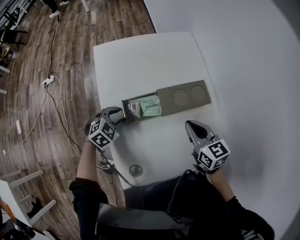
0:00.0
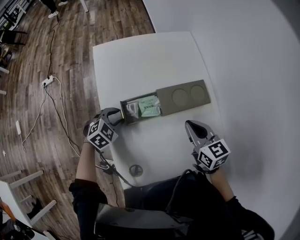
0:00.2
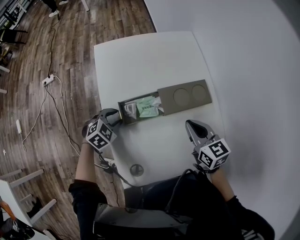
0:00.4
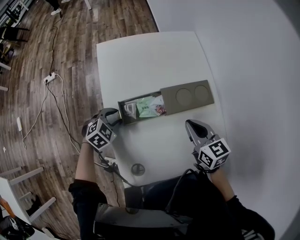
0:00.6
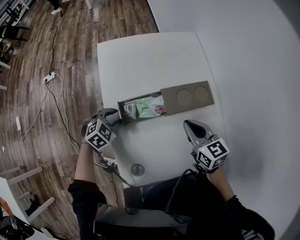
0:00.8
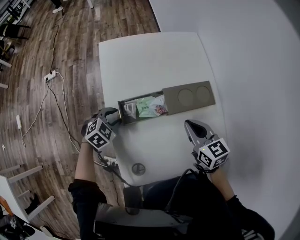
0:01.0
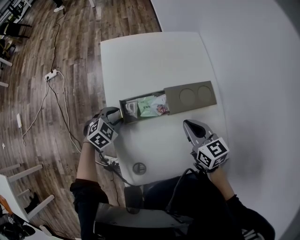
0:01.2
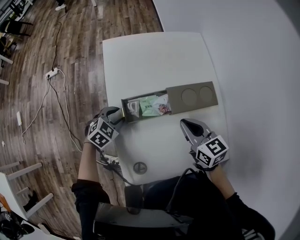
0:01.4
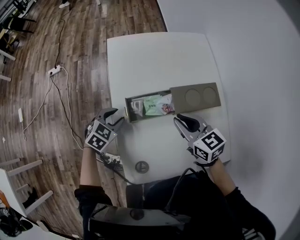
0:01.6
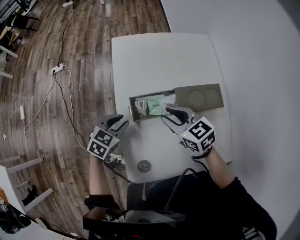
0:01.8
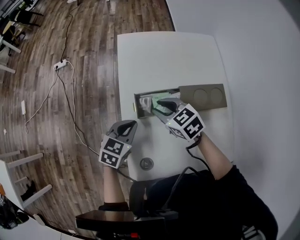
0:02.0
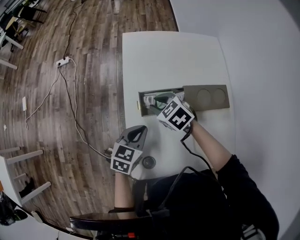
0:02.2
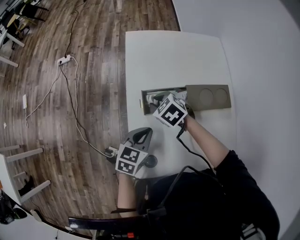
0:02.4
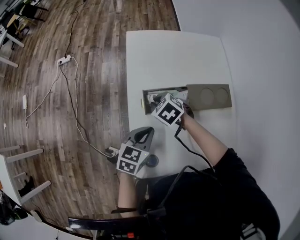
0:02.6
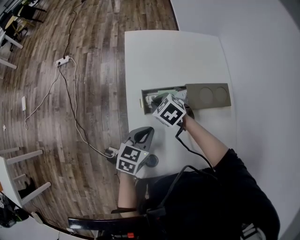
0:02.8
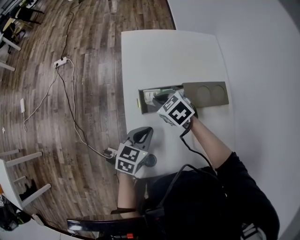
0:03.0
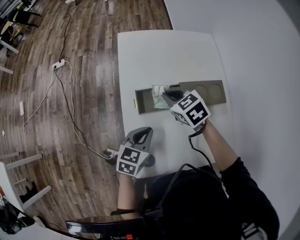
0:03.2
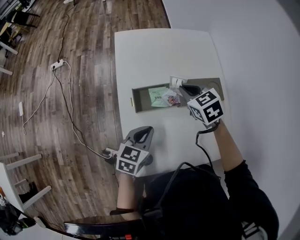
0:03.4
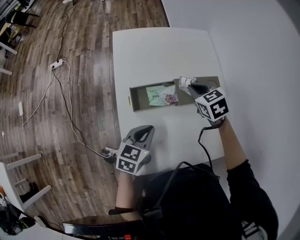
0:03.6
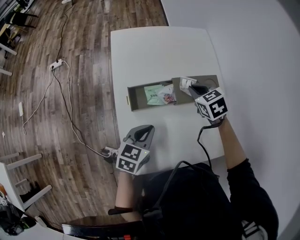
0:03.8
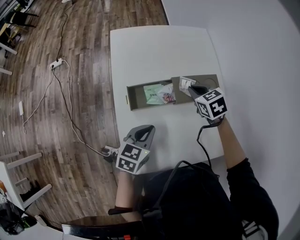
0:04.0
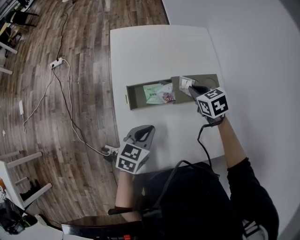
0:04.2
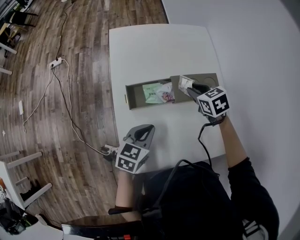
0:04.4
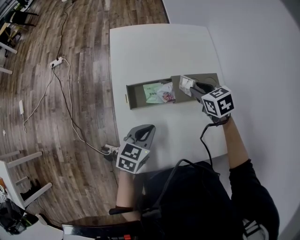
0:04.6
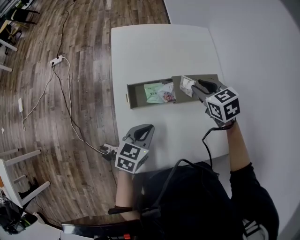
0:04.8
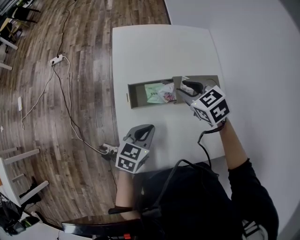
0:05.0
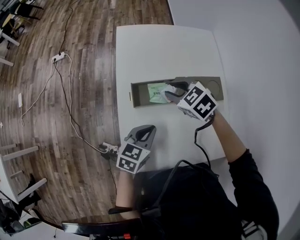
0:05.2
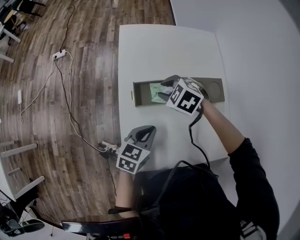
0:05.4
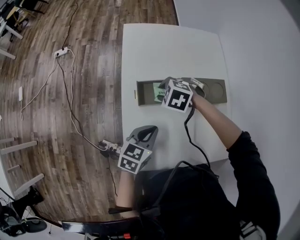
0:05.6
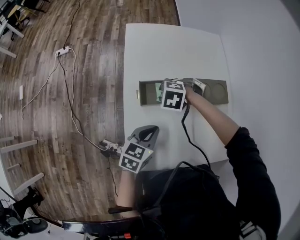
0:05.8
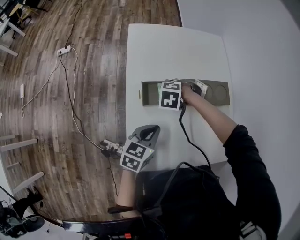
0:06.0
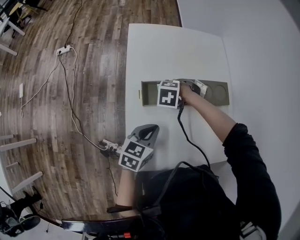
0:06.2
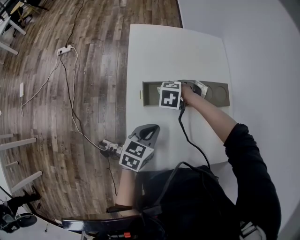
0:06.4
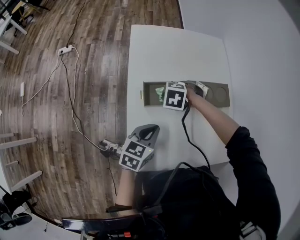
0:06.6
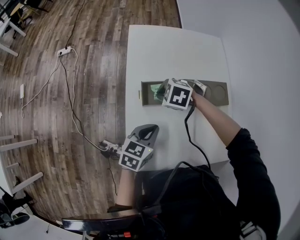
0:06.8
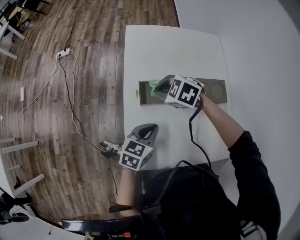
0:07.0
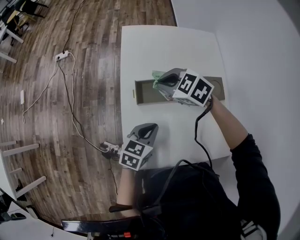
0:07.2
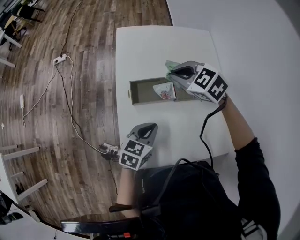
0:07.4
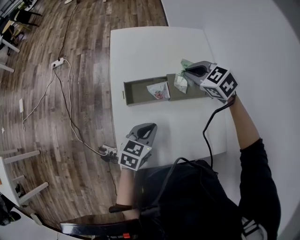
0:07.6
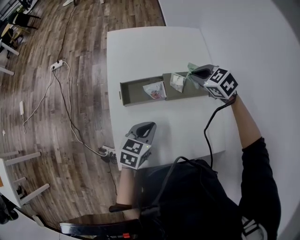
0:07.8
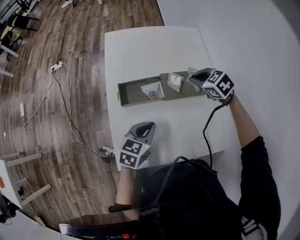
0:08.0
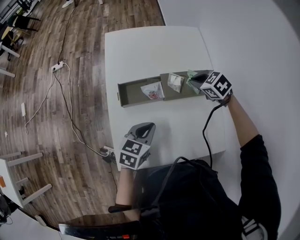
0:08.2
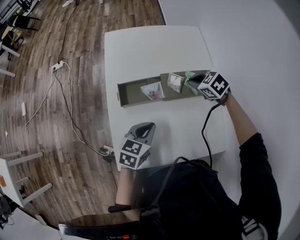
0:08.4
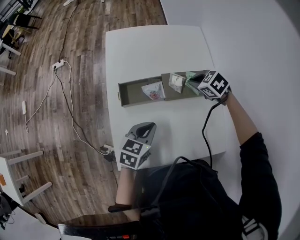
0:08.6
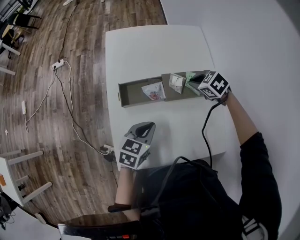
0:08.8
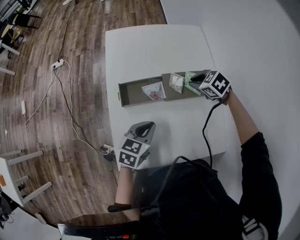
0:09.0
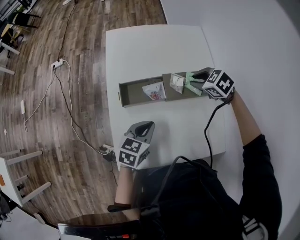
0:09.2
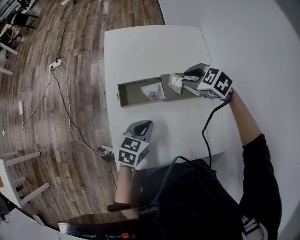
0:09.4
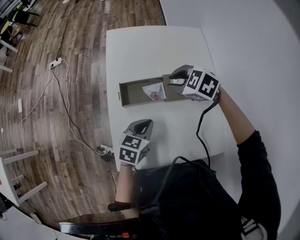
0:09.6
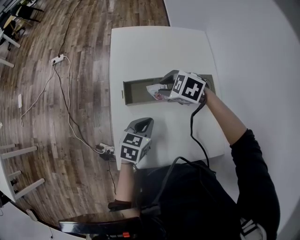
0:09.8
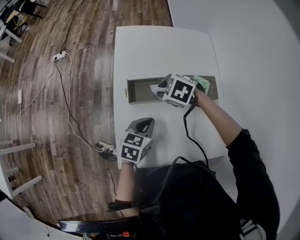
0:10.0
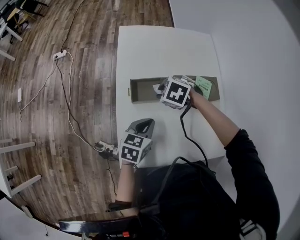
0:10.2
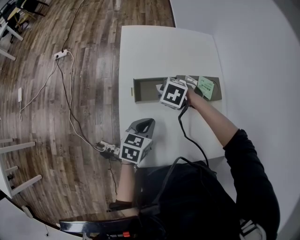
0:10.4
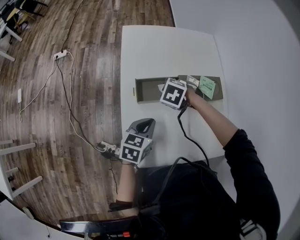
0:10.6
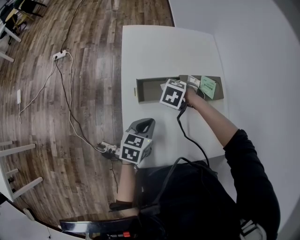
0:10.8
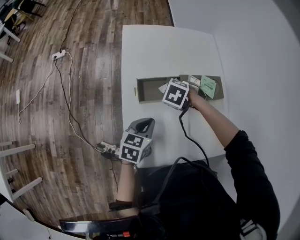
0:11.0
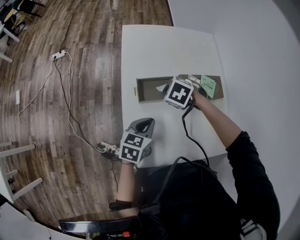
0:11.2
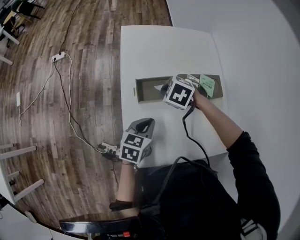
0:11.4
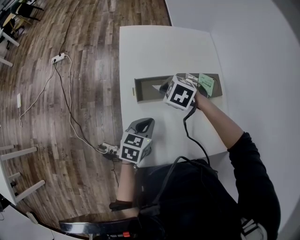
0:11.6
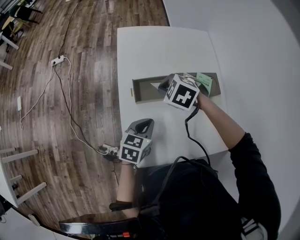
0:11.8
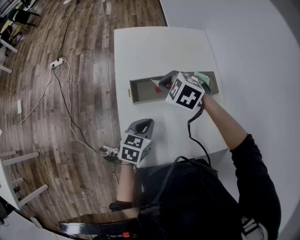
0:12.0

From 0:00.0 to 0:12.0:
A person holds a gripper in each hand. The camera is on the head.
From 0:00.0 to 0:01.6: Both grippers move to the left, about 10 cm.
From 0:01.6 to 0:03.0: The right gripper moves to the left, downward and forward, approximately 15 cm, and turns by roughly 30 degrees; the left gripper moves backward and to the right, roughly 10 cm, changes its angle by some 30 degrees, and closes its fingers.
From 0:03.0 to 0:04.4: The right gripper is displaced to the right by about 20 cm, swivels approximately 20 degrees, and opens its fingers; the left gripper shifts approximately 5 cm to the right.
From 0:04.4 to 0:06.0: The right gripper shifts by some 20 cm, and rotates around the line of its fingers by roughly 50 degrees, counterclockwise from behind.
From 0:06.0 to 0:07.6: The right gripper heads upward, covering about 15 cm, tips its fingers upward by approximately 30 degrees, and closes. Meanwhile the left gripper shifts by roughly 5 cm.
From 0:07.6 to 0:09.0: The right gripper is displaced downward and to the right by some 15 cm.
From 0:09.0 to 0:10.4: The left gripper changes place by approximately 5 cm, while the right gripper reaches roughly 5 cm upward, then returns, and turns by approximately 20 degrees.
From 0:10.4 to 0:12.0: The right gripper shifts about 10 cm upward, and closes up.

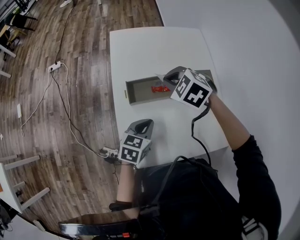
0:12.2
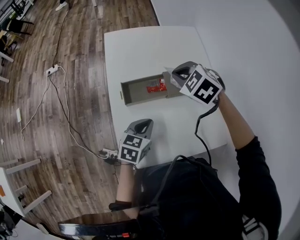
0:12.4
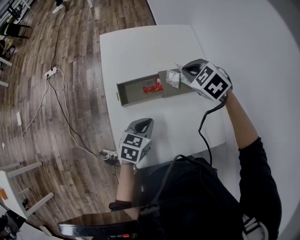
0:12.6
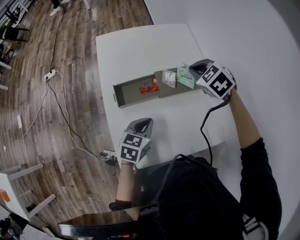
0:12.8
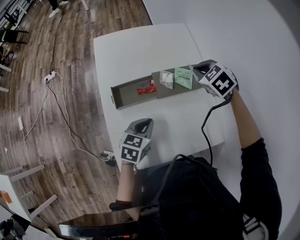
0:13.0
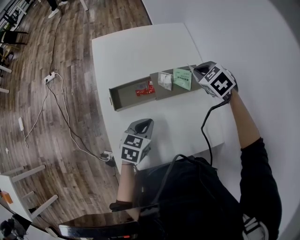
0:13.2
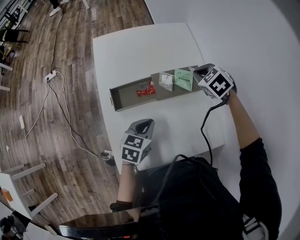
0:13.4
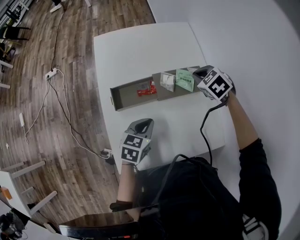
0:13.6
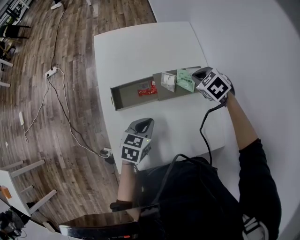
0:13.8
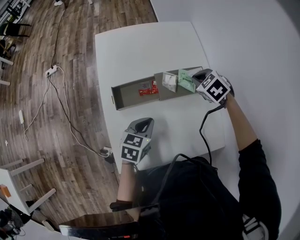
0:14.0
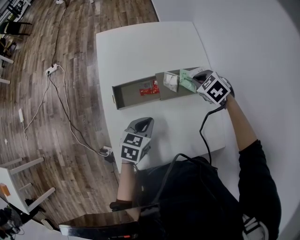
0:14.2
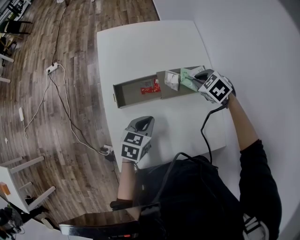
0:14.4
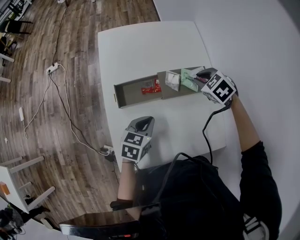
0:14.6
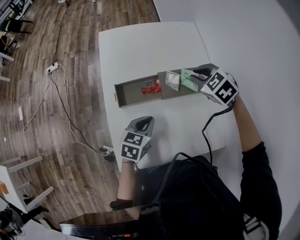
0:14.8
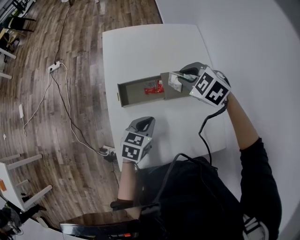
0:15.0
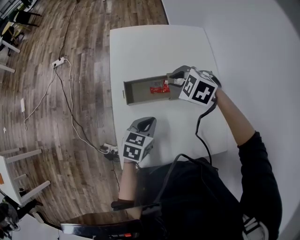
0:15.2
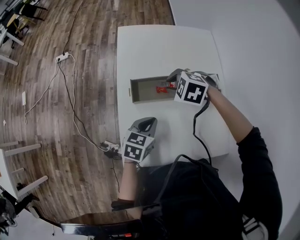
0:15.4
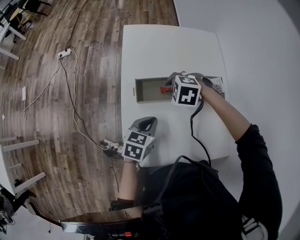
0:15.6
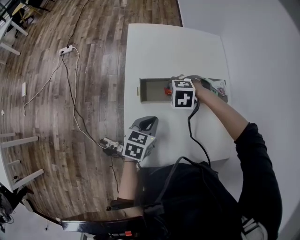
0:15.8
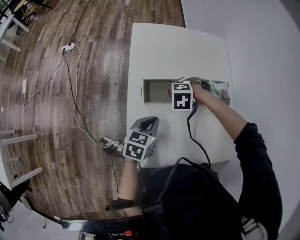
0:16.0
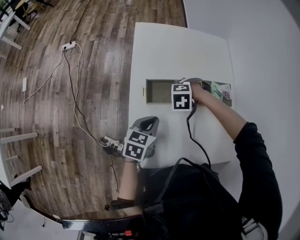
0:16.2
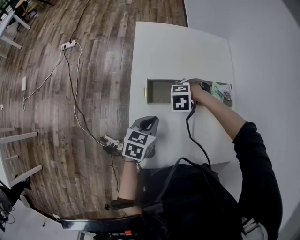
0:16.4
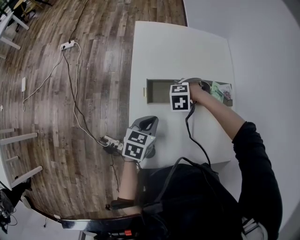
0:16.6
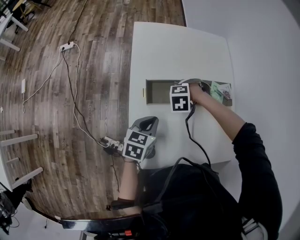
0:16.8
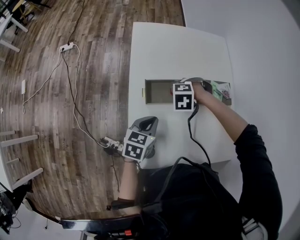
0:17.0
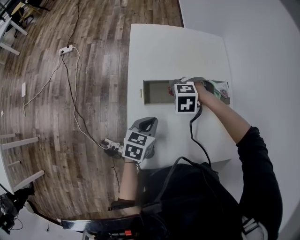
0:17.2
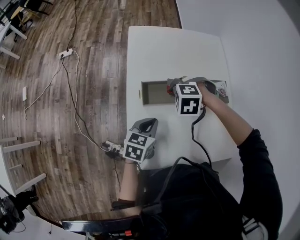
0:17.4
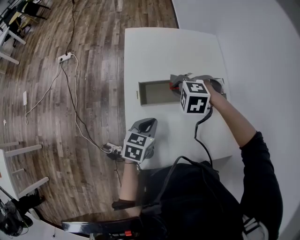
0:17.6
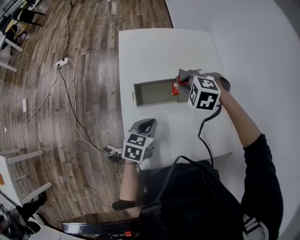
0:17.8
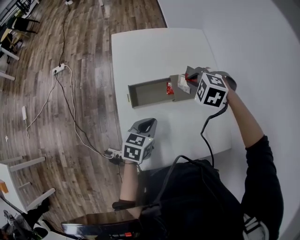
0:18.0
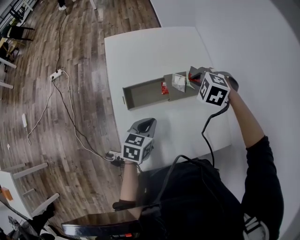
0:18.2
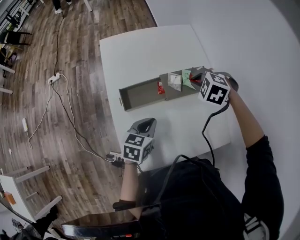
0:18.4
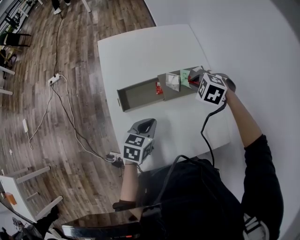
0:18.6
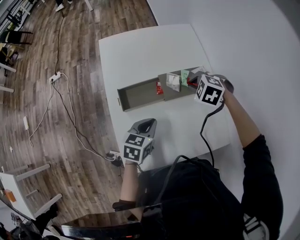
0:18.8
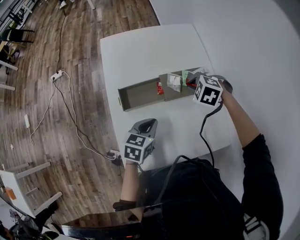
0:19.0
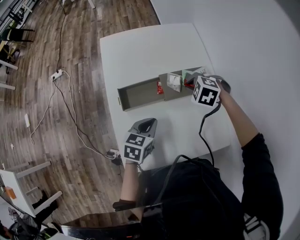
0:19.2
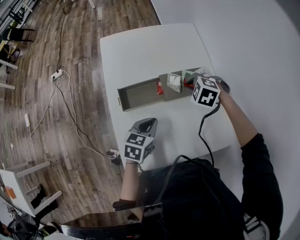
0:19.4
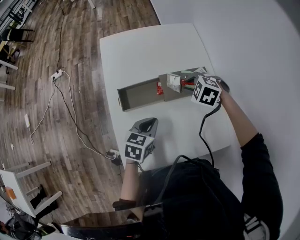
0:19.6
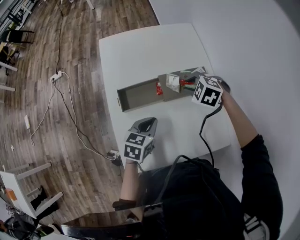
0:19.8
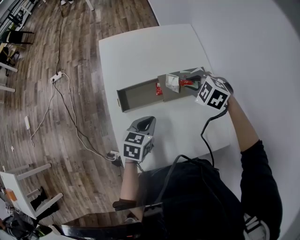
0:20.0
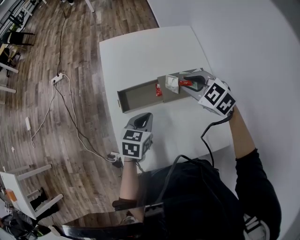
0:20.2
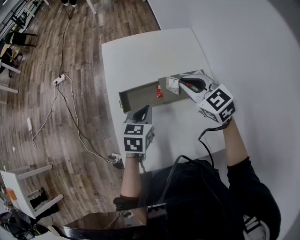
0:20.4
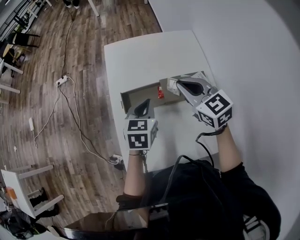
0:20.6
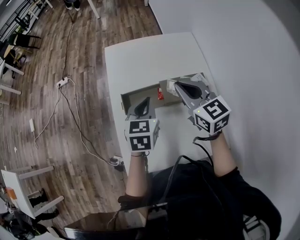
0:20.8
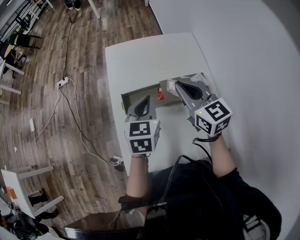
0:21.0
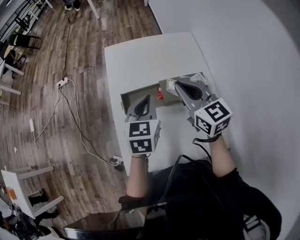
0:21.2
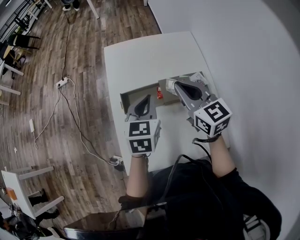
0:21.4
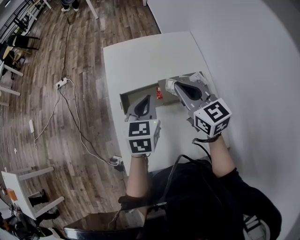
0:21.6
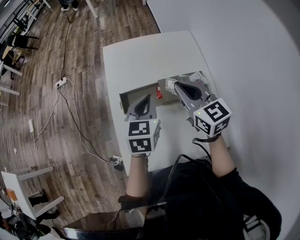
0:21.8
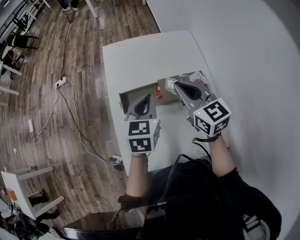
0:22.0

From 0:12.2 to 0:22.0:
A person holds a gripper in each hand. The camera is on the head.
From 0:12.2 to 0:13.6: The right gripper moves to the right, roughly 20 cm, and swivels roughly 20 degrees, while the left gripper moves to the right, about 5 cm.
From 0:13.6 to 0:15.0: The right gripper is displaced to the left and upward by roughly 15 cm.
From 0:15.0 to 0:16.4: The left gripper shifts by approximately 10 cm. The right gripper moves downward, about 20 cm, and tilts its fingers approximately 30 degrees downward.
From 0:16.4 to 0:17.8: The right gripper moves upward, approximately 15 cm, and rotates about 20 degrees.
From 0:17.8 to 0:19.2: The right gripper goes roughly 10 cm to the right. Meanwhile the left gripper moves to the right, roughly 5 cm.
From 0:19.2 to 0:20.6: The right gripper heads upward, covering some 15 cm, and angles its fingers upward, by approximately 50 degrees, while the left gripper travels upward and forward by about 10 cm.
From 0:20.6 to 0:22.0: There are only small adjustments of the grippers.

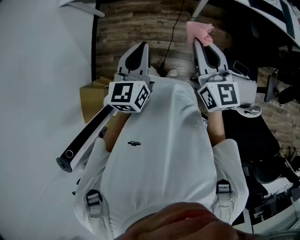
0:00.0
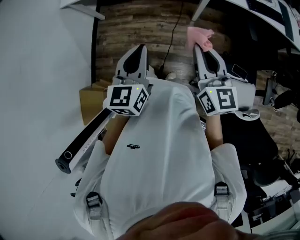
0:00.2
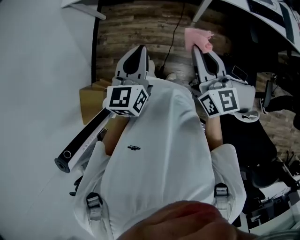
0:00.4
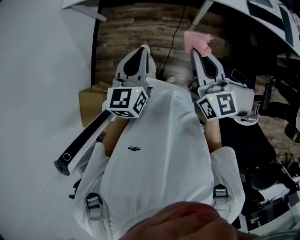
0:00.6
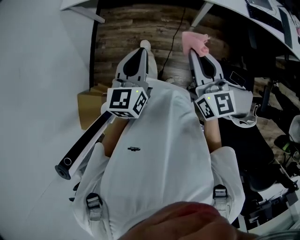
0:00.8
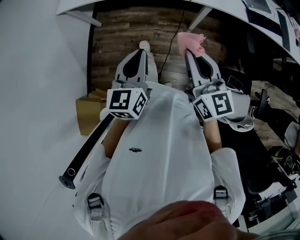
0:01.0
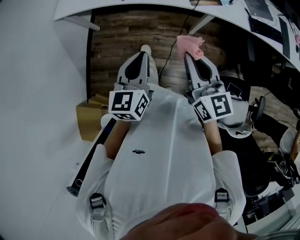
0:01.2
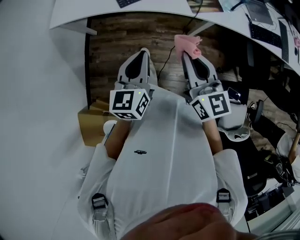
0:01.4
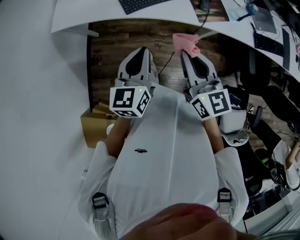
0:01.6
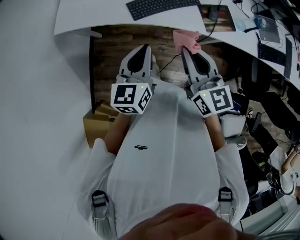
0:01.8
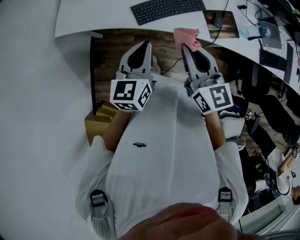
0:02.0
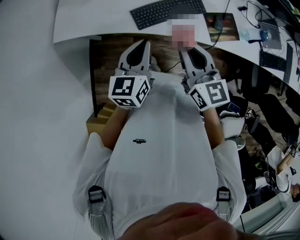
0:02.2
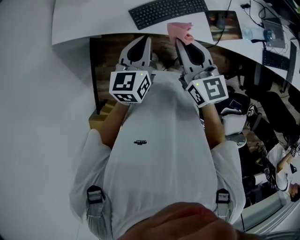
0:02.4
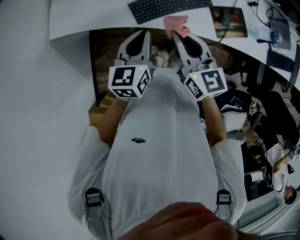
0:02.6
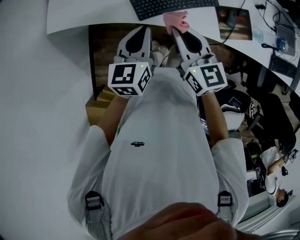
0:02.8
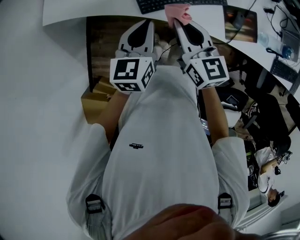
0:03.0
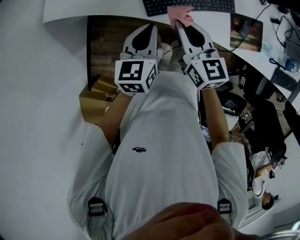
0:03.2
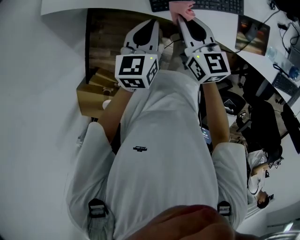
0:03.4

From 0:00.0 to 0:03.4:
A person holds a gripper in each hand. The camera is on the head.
From 0:00.0 to 0:01.6: The grippers both shift forward by approximately 30 cm.
From 0:01.6 to 0:03.4: The left gripper shifts some 30 cm forward and downward. The right gripper travels forward, downward and to the left by approximately 40 cm.
